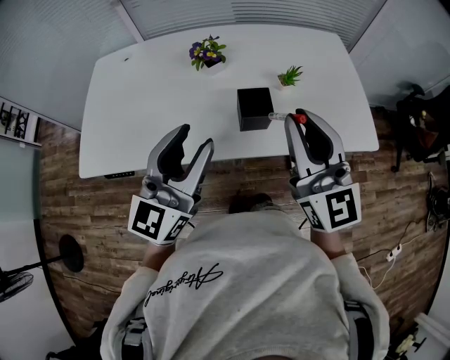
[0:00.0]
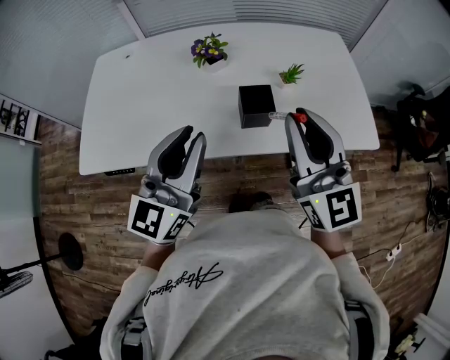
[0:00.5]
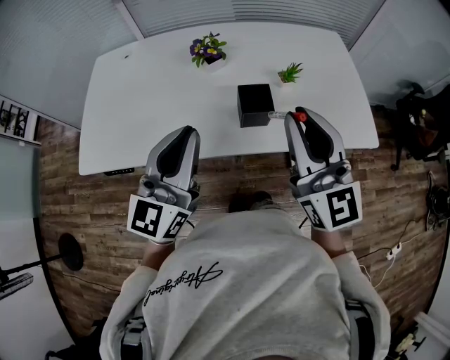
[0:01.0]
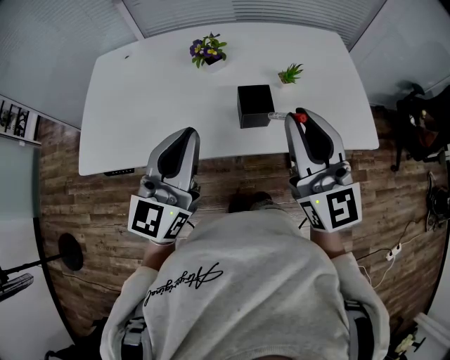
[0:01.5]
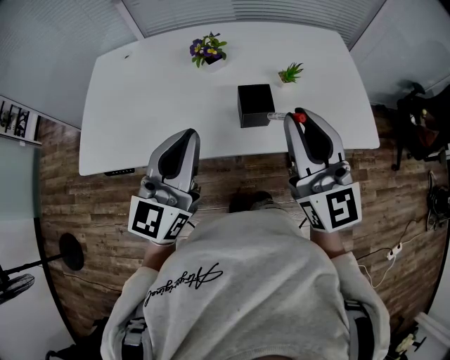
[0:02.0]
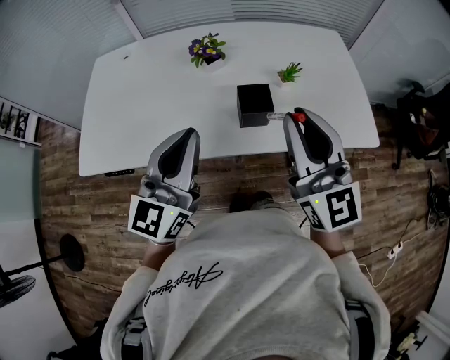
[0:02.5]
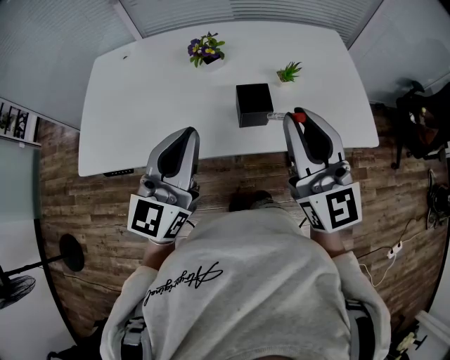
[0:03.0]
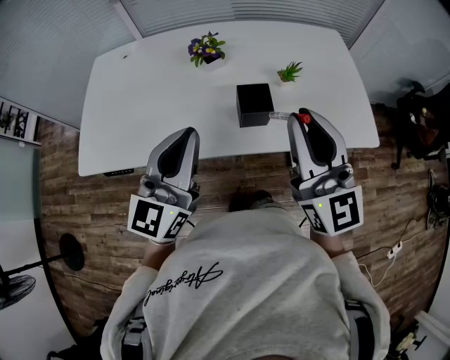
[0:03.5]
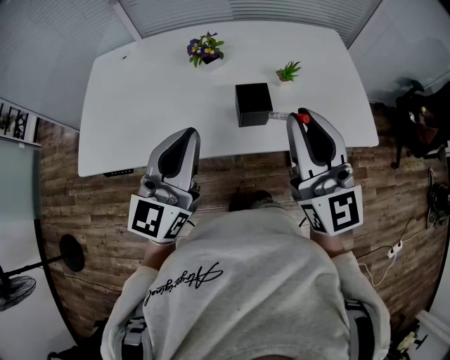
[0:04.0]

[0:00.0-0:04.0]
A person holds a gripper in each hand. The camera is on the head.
0:00.0 to 0:02.0: The left gripper closes its fingers.
0:02.0 to 0:04.0: Neither gripper changes place.

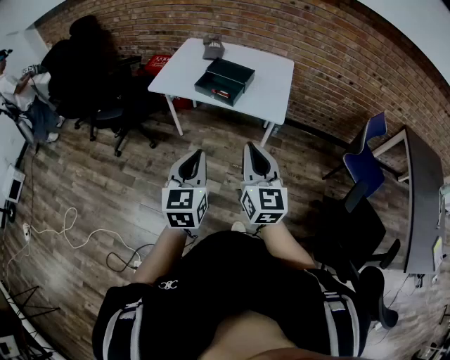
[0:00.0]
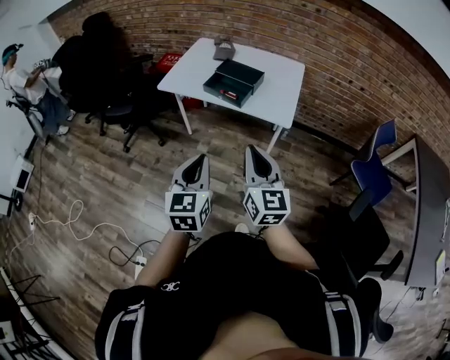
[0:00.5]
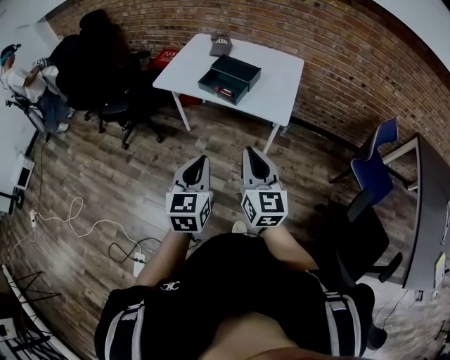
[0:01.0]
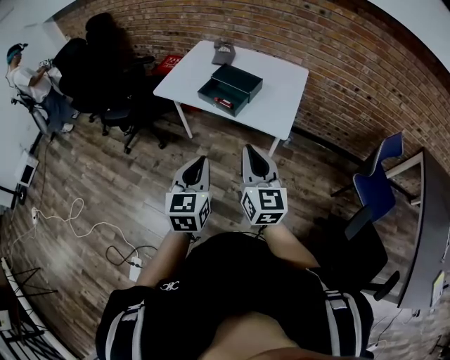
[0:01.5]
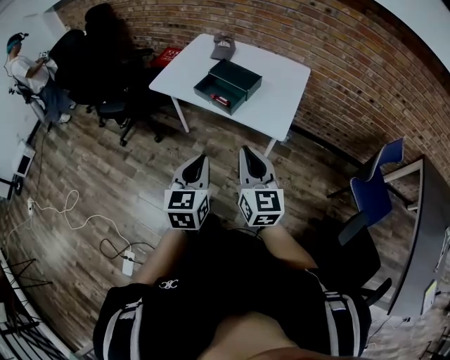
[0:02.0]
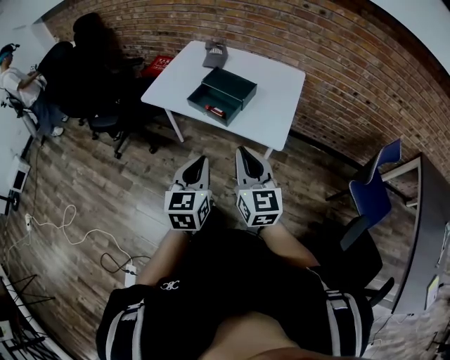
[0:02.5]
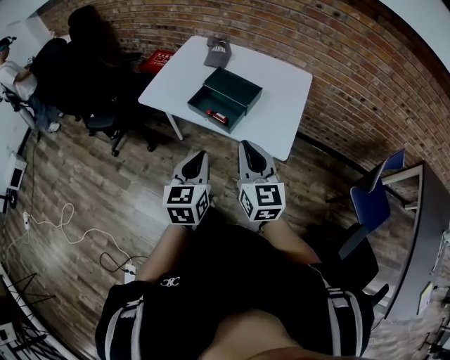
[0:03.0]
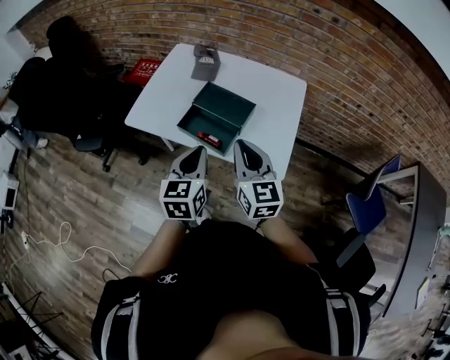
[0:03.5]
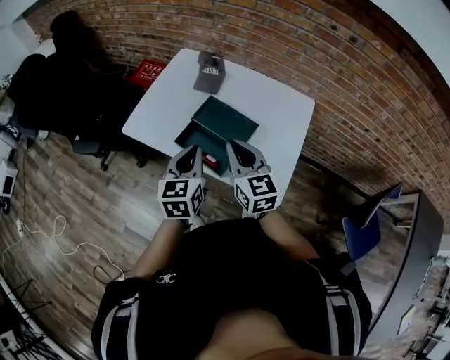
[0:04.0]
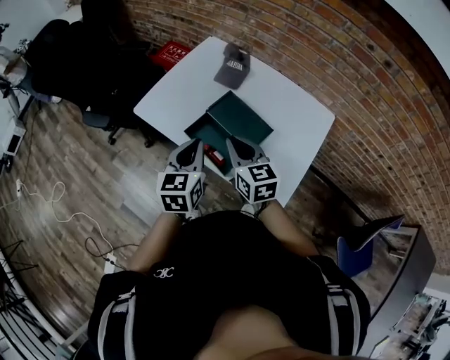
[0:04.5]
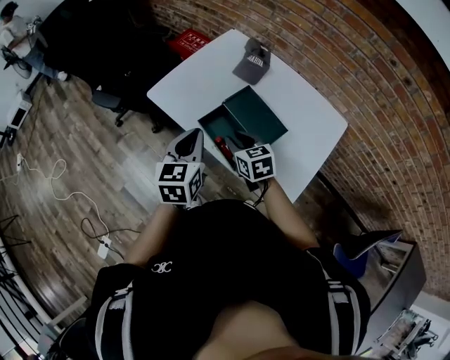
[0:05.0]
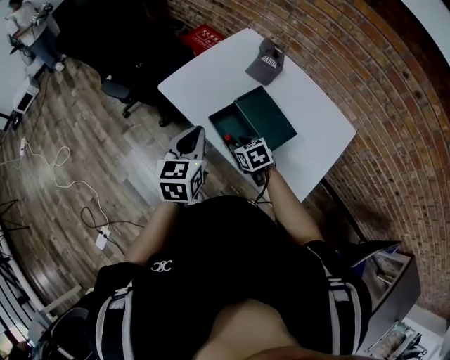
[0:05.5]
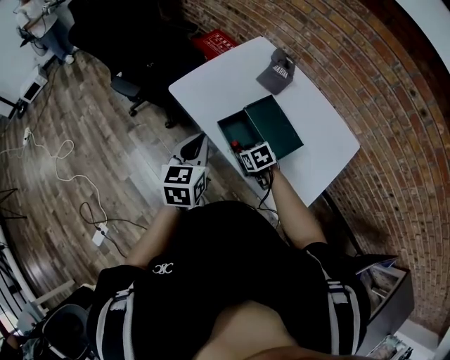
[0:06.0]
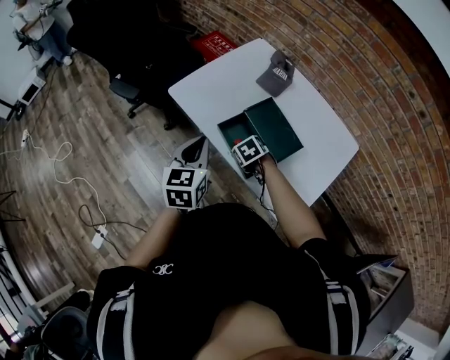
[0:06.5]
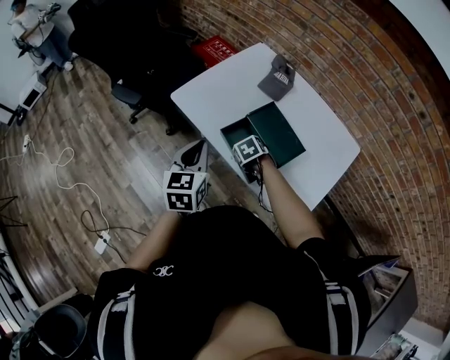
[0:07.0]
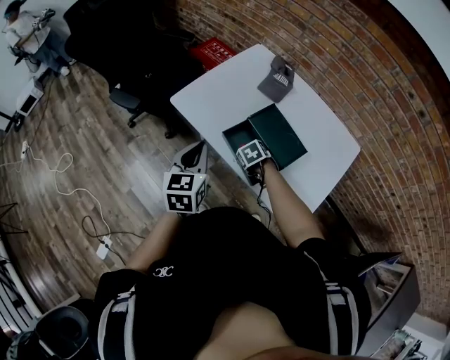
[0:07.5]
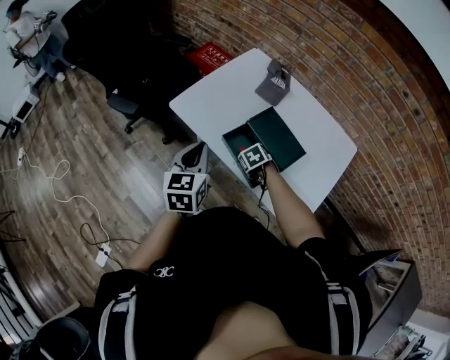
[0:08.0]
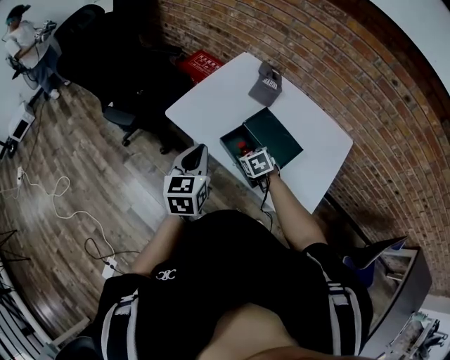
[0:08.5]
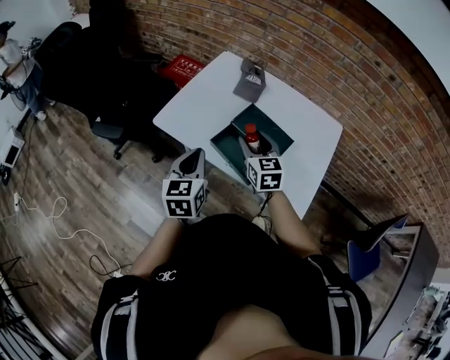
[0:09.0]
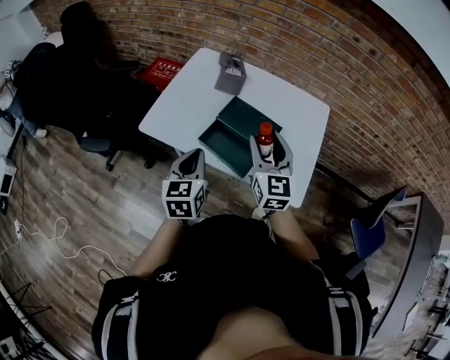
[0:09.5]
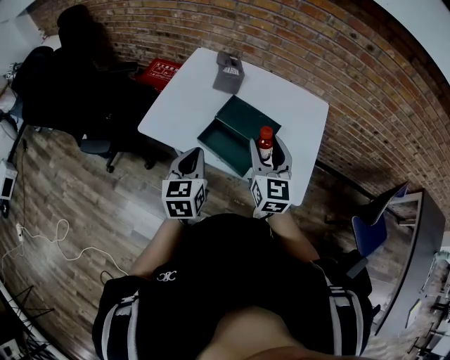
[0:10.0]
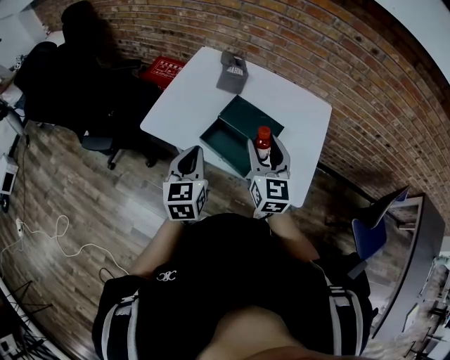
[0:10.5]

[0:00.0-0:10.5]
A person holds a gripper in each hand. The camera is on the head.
0:00.0 to 0:02.0: The right gripper moves forward and to the right, roughly 10 cm. The left gripper goes about 10 cm to the right and forward.
0:02.0 to 0:04.0: The two grippers go about 35 cm forward.
0:04.0 to 0:06.5: The left gripper moves roughly 10 cm. The right gripper goes some 25 cm downward, tips its fingers downward by approximately 60 degrees, and opens its fingers.
0:06.5 to 0:08.5: The grippers make only small movements.
0:08.5 to 0:10.5: The right gripper goes approximately 25 cm upward, and tips its fingers upward by some 50 degrees.

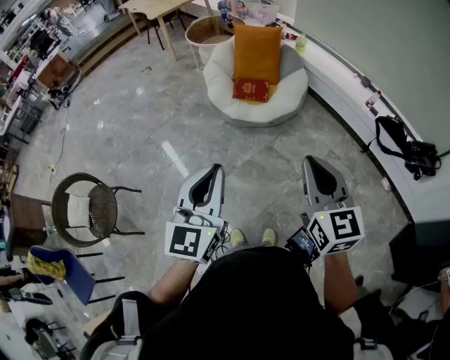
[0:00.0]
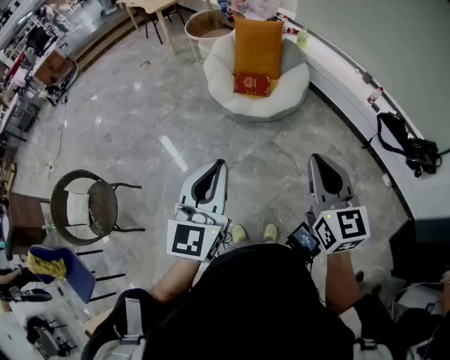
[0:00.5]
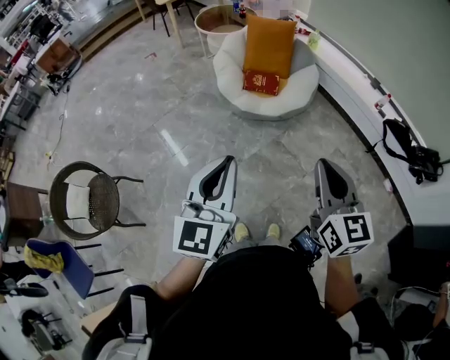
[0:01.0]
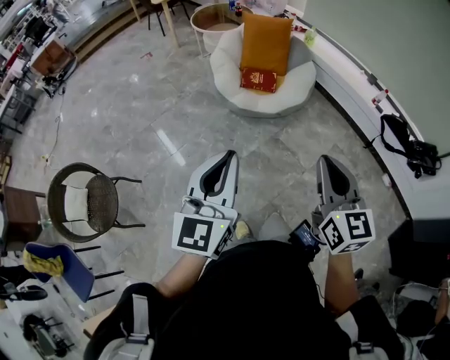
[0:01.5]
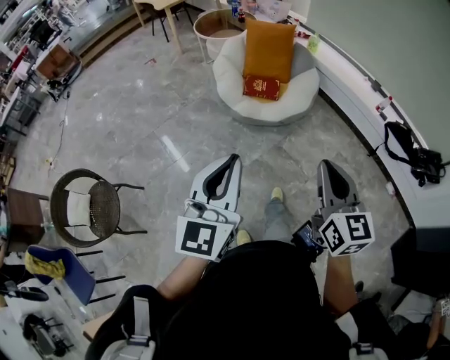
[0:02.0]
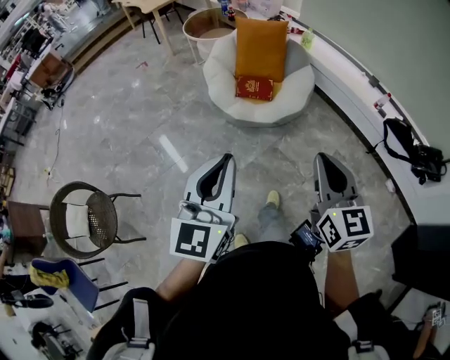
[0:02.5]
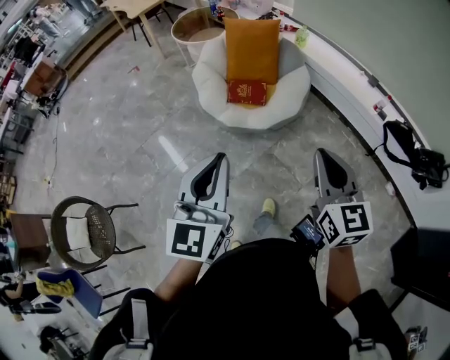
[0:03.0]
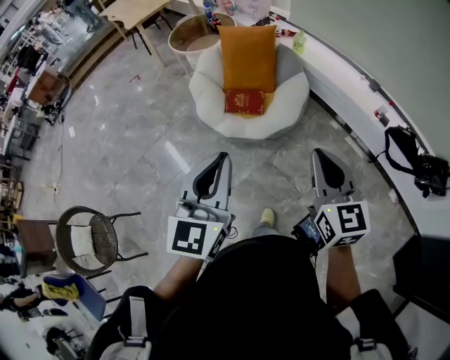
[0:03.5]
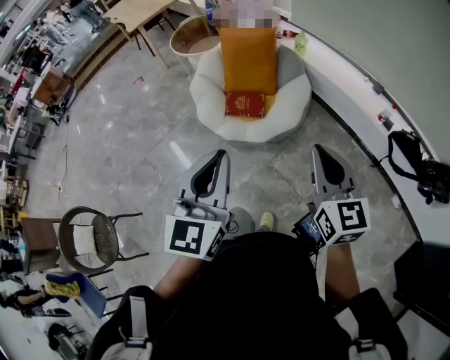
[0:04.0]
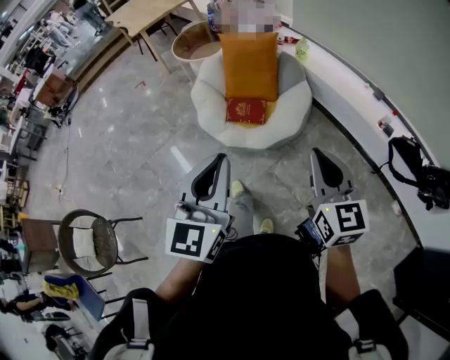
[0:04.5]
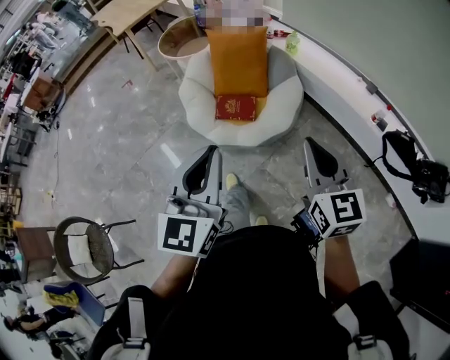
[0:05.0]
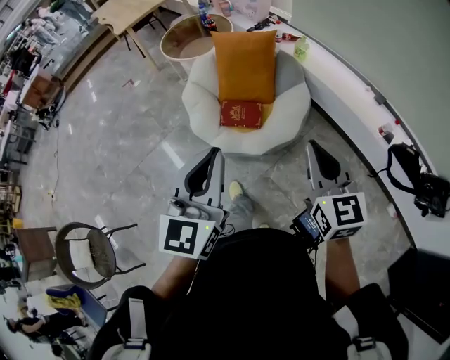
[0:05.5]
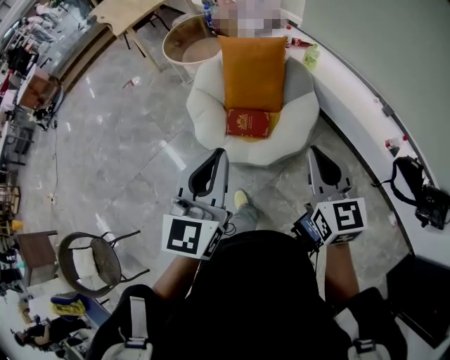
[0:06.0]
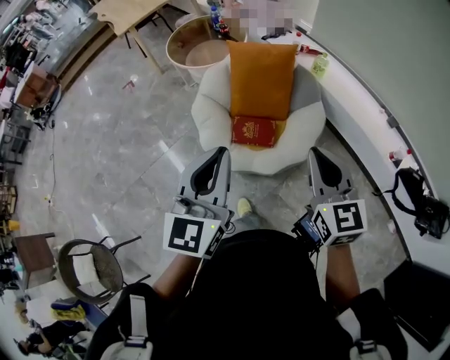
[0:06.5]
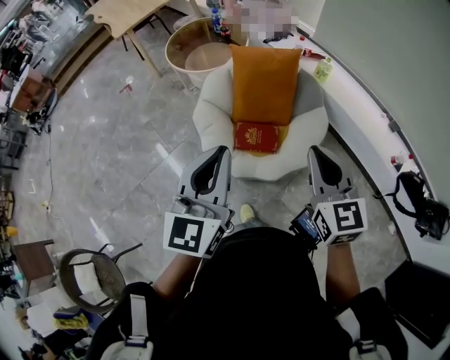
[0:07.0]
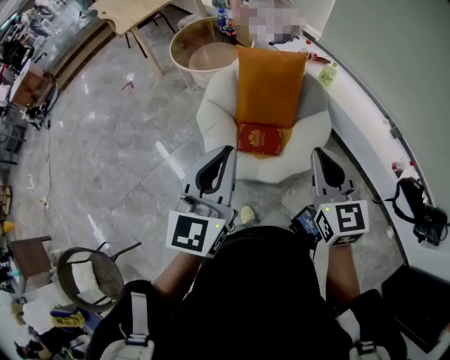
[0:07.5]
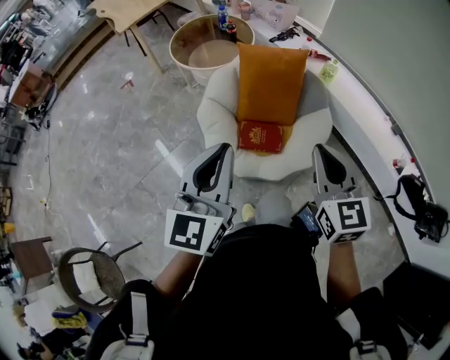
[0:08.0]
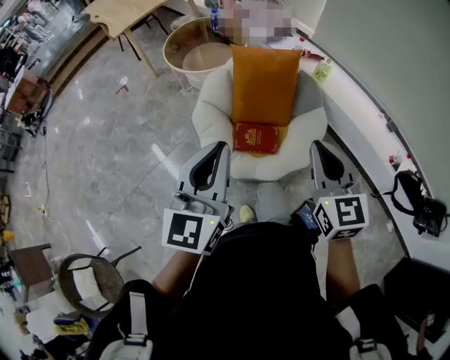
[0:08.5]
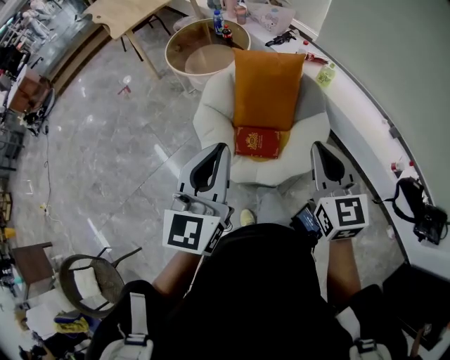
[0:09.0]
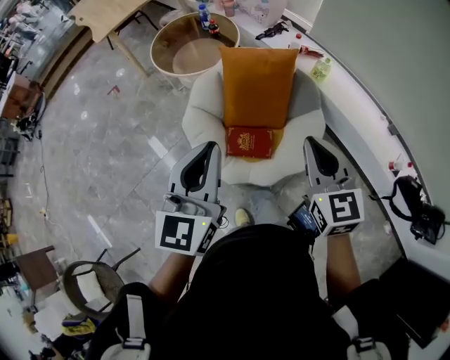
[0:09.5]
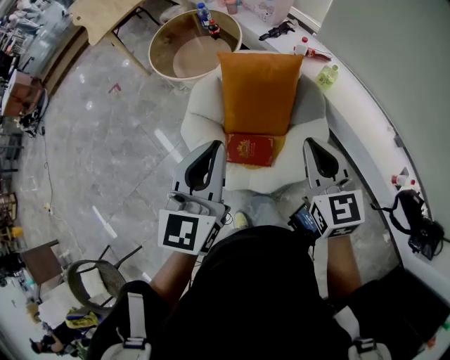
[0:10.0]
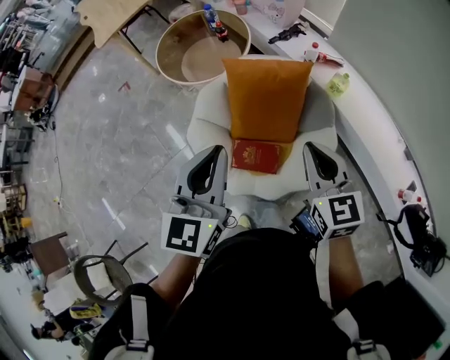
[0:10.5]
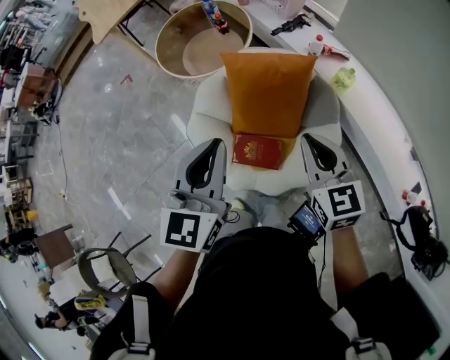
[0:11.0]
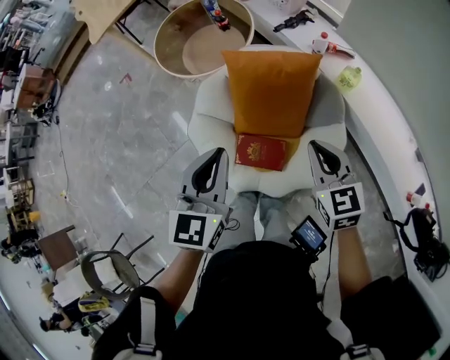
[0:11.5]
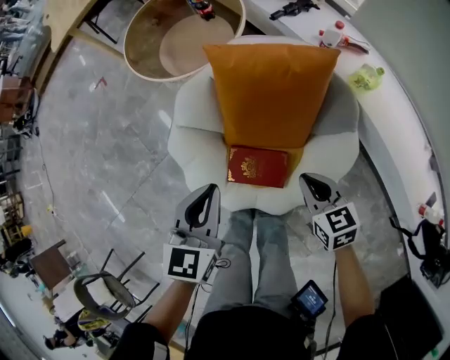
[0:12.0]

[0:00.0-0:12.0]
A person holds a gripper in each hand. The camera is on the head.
0:00.0 to 0:02.0: The left gripper ends up about 5 cm from where it was. The right gripper ends up roughly 5 cm from where it was.
0:02.0 to 0:04.0: The two grippers go some 30 cm forward and to the right.
0:04.0 to 0:06.0: Both grippers move forward, roughly 25 cm.
0:06.0 to 0:08.0: The two grippers go some 15 cm forward and to the left.
0:08.0 to 0:10.0: Both grippers move forward, roughly 20 cm.
0:10.0 to 0:12.0: Both grippers move downward, approximately 30 cm. The left gripper swivels some 20 degrees. The right gripper turns by roughly 30 degrees.
